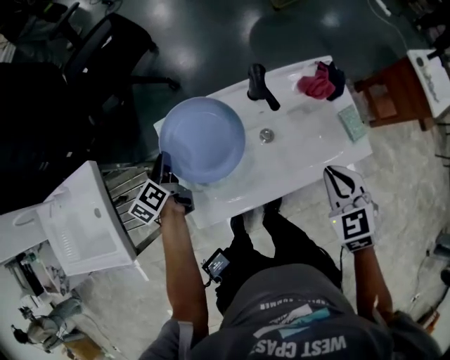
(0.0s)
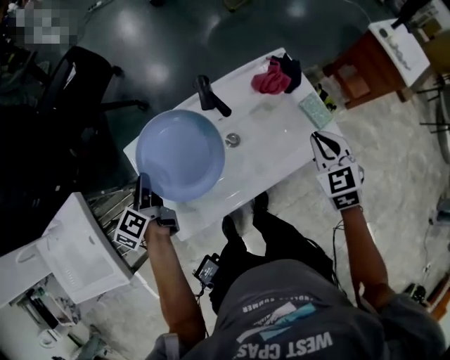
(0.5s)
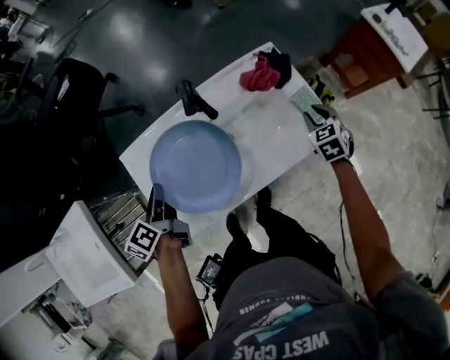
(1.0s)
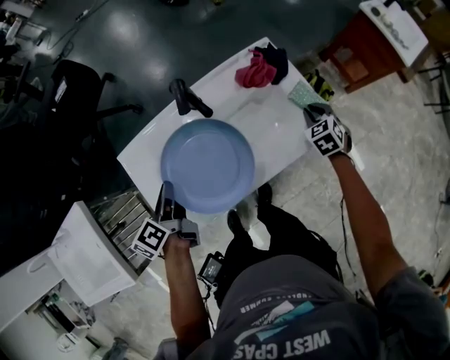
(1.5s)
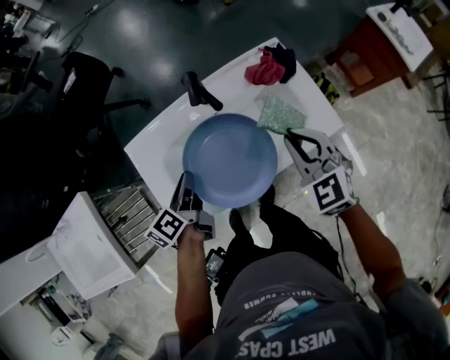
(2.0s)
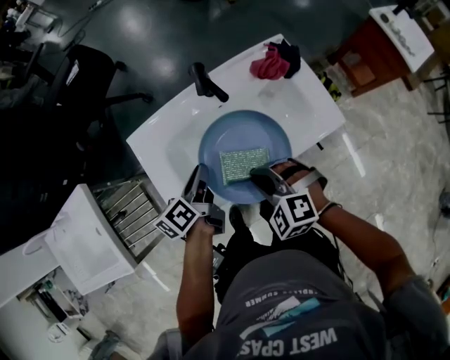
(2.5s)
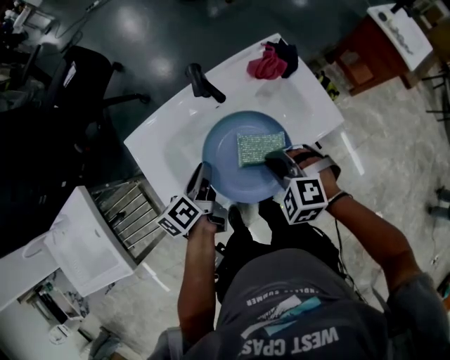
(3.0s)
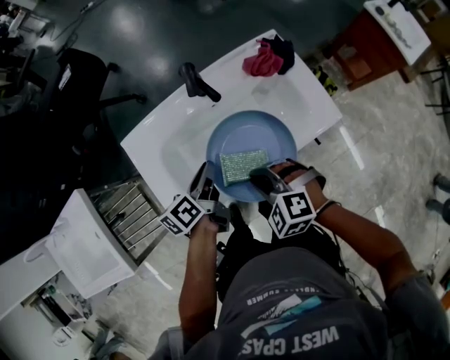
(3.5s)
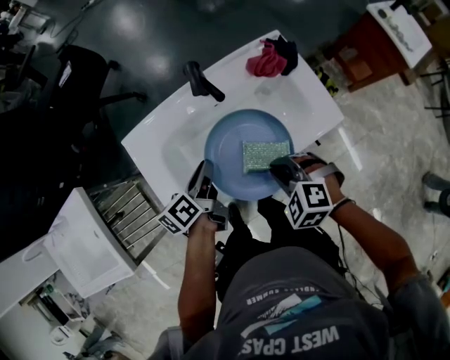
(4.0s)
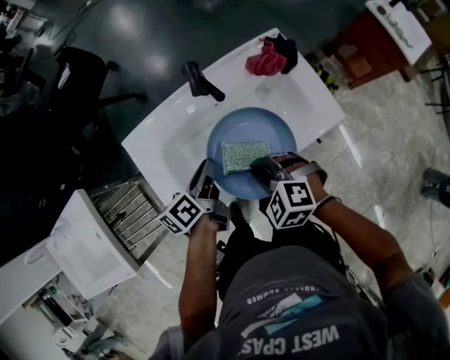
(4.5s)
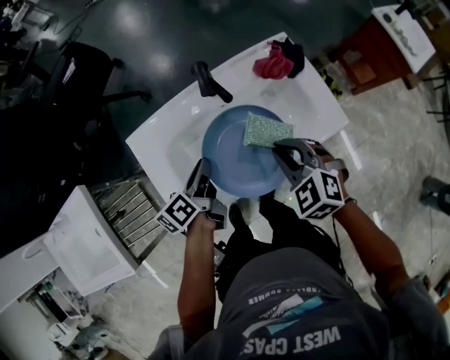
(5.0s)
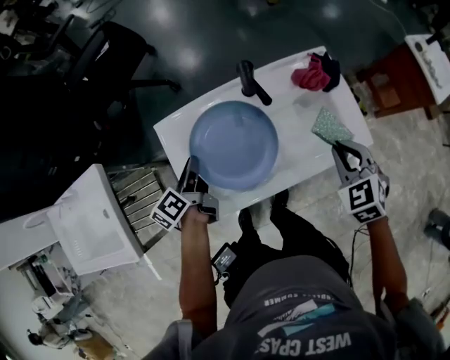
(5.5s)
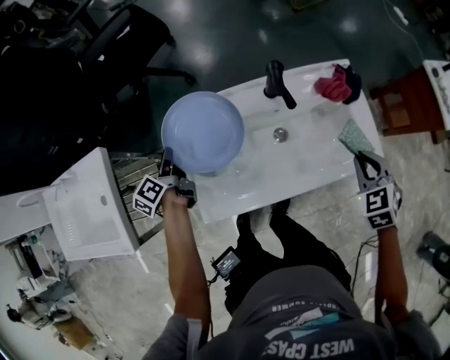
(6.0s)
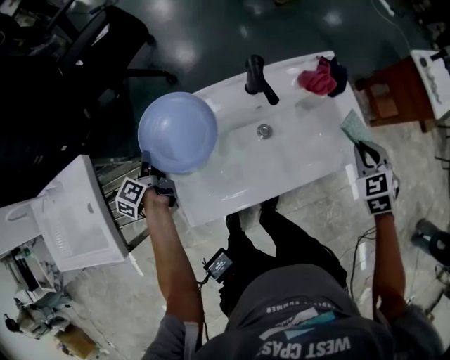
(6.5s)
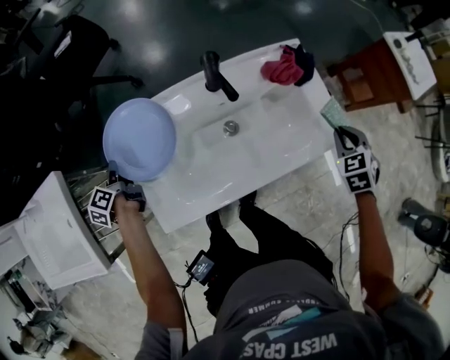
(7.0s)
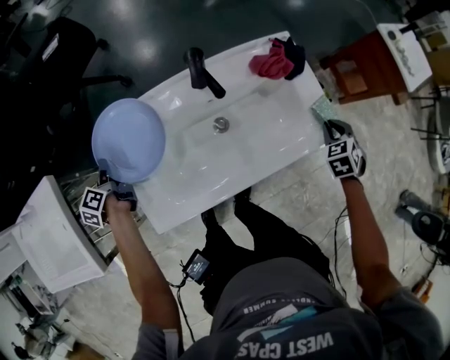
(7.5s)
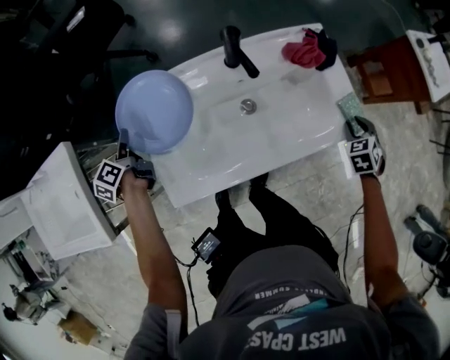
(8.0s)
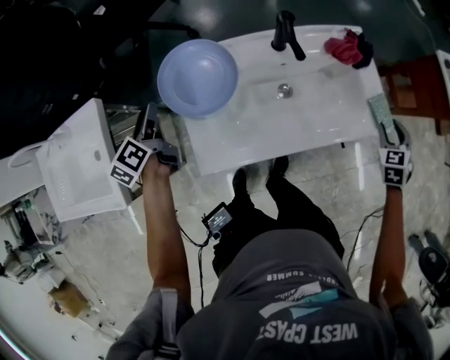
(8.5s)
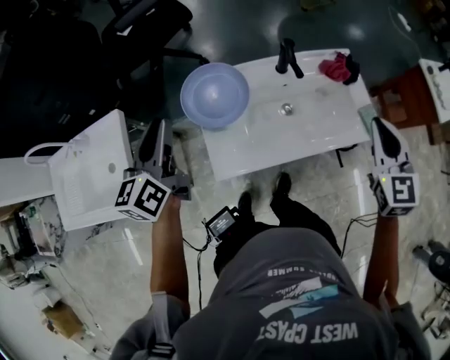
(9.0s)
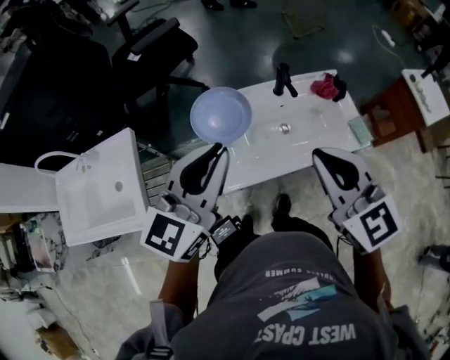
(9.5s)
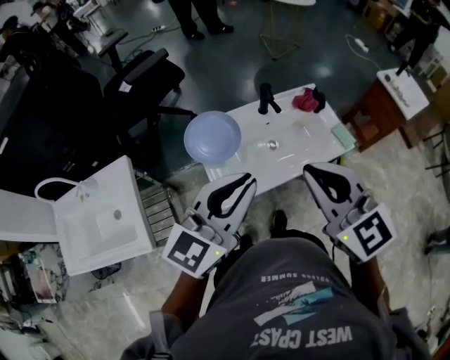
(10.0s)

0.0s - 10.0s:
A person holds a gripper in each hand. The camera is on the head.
0.0s - 2.0s: The right gripper moves roughly 20 cm to the right and comes back. The left gripper is displaced to the right by about 20 cm.
2.0s - 4.0s: The right gripper goes left and right, some 15 cm each way, reversing 3 times, and rotates some 40 degrees. The left gripper moves about 5 cm.
4.0s - 6.0s: The right gripper travels to the right and forward by roughly 15 cm, and swivels roughly 30 degrees. The left gripper is displaced to the left by about 30 cm, and changes its angle by roughly 30 degrees.
6.0s - 8.0s: The right gripper is displaced to the right and downward by roughly 20 cm, and opens its fingers, while the left gripper opens.
8.0s - 10.0s: The left gripper heads upward, to the right and backward, covering roughly 50 cm, angles its fingers upward, by some 30 degrees, and closes up, while the right gripper shifts some 60 cm upward, to the left and backward, points its fingers approximately 50 degrees further upward, and closes.

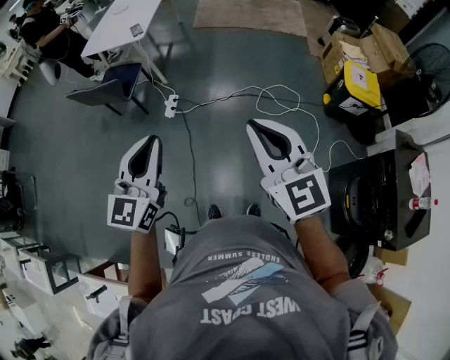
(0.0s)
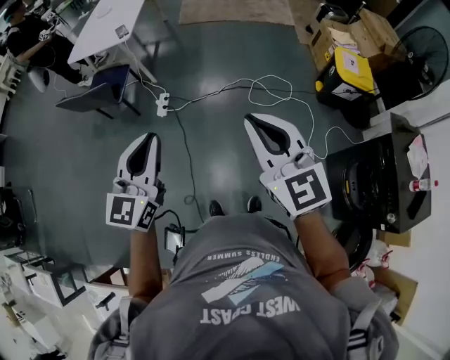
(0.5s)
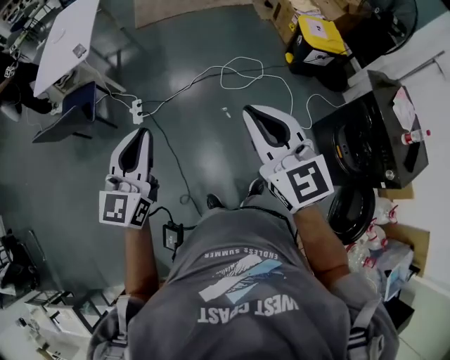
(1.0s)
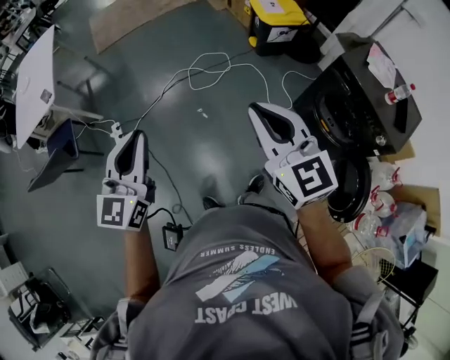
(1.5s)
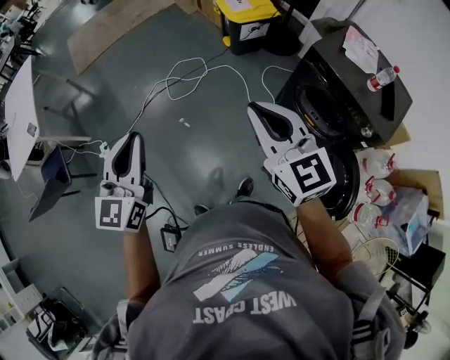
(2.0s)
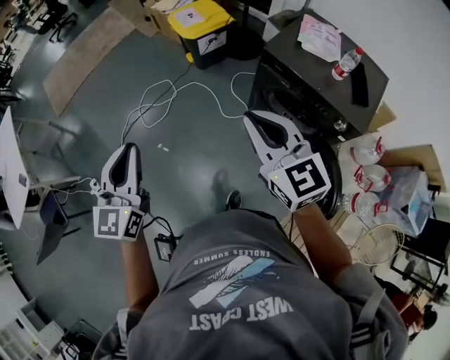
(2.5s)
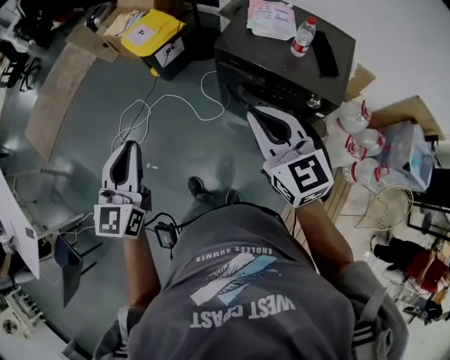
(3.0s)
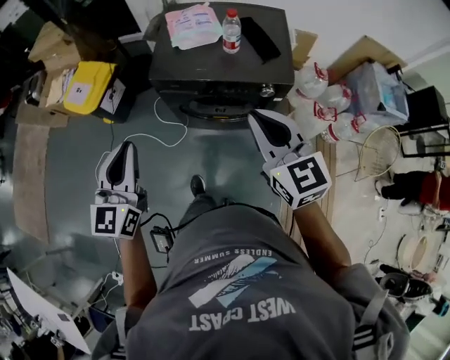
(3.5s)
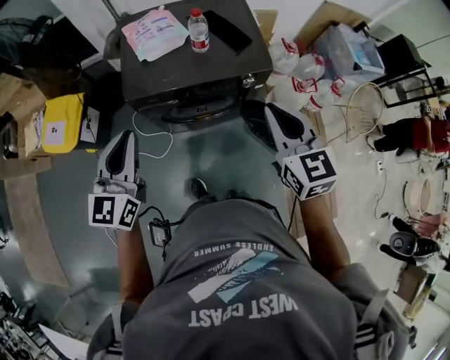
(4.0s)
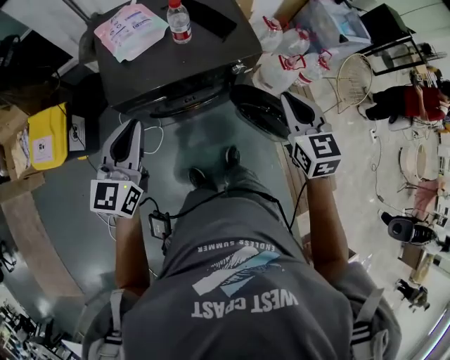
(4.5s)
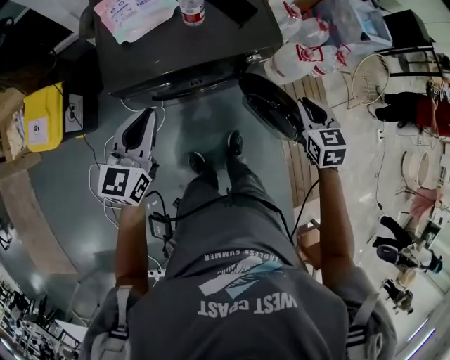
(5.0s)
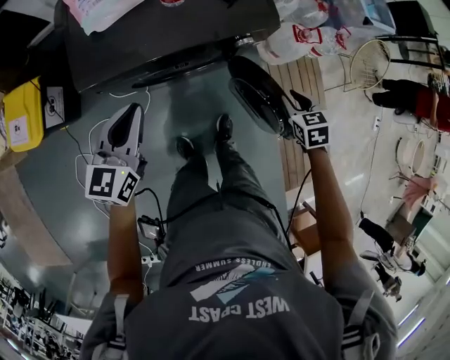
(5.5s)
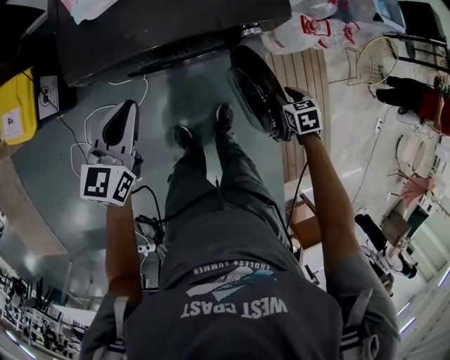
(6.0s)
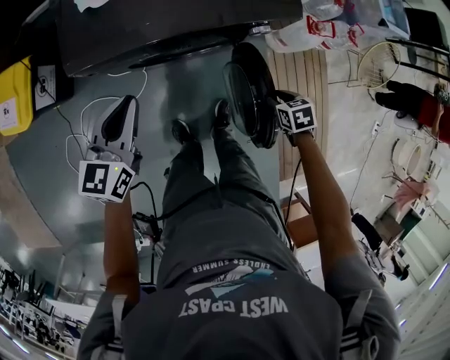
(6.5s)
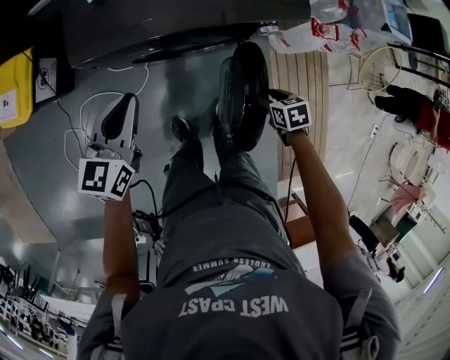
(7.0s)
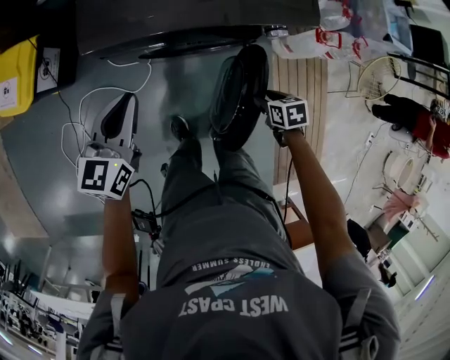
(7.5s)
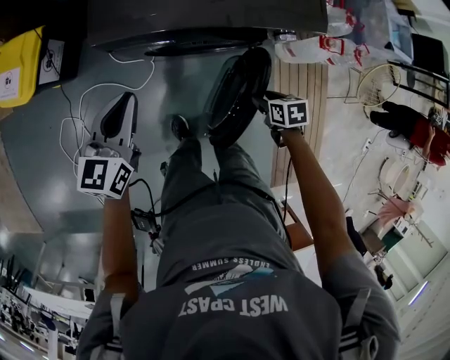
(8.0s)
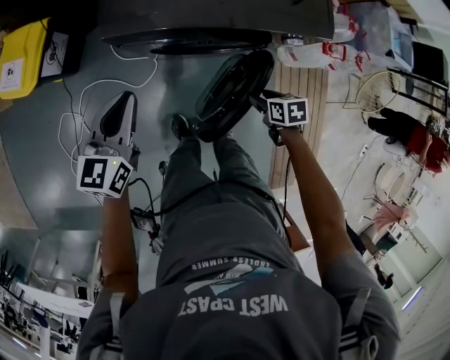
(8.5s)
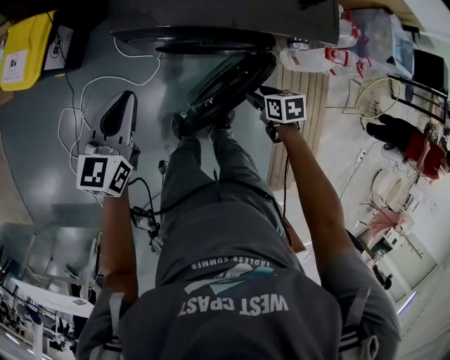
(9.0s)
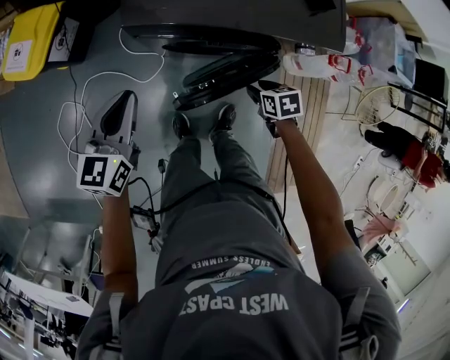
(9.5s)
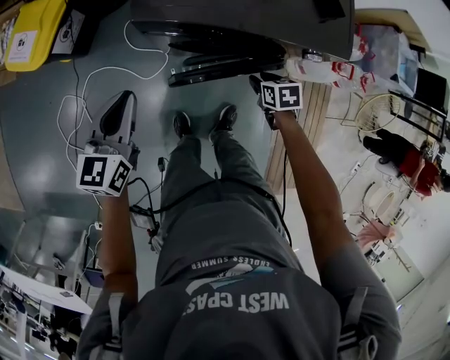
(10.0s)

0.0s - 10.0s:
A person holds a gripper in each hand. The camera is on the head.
0.0s - 2.0s: The left gripper ends up approximately 30 cm from where it was, and swivels roughly 30 degrees; the right gripper changes place by approximately 35 cm, and changes its angle by some 40 degrees.
2.0s - 4.0s: The two grippers travel together, about 50 cm. The left gripper swivels about 60 degrees. The right gripper changes its angle by some 70 degrees.
4.0s - 6.0s: The left gripper is displaced downward and forward by approximately 25 cm, and turns by roughly 20 degrees; the right gripper shifts about 40 cm downward, points its fingers approximately 50 degrees further downward, and opens its fingers.
6.0s - 8.0s: The right gripper is displaced to the left by about 10 cm, while the left gripper shifts roughly 10 cm to the left.
8.0s - 10.0s: The right gripper moves forward and to the left, roughly 15 cm. Meanwhile the left gripper shifts some 10 cm to the left.

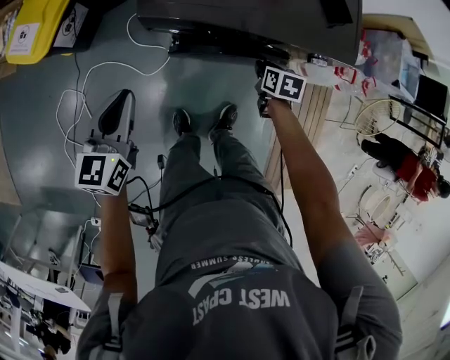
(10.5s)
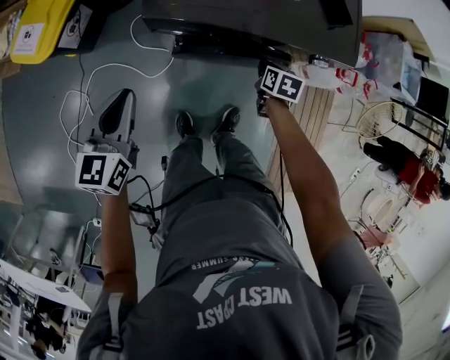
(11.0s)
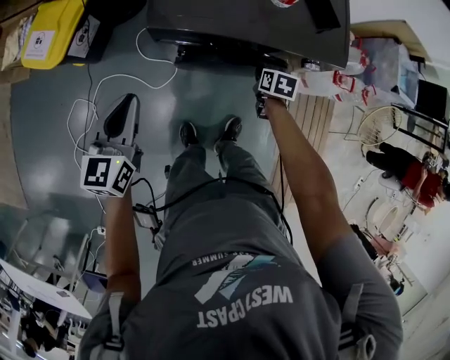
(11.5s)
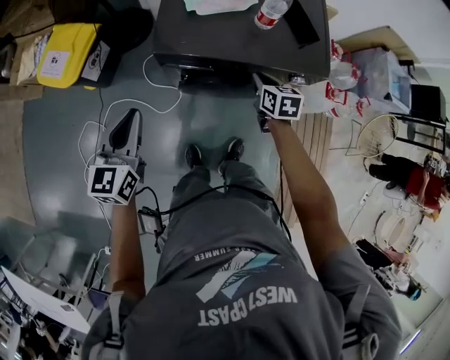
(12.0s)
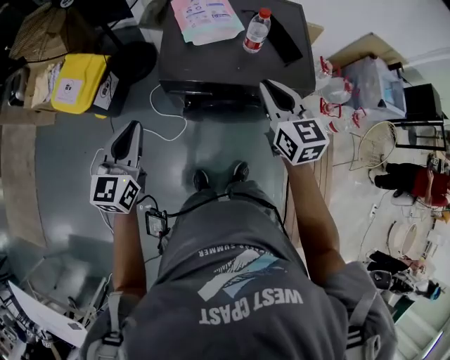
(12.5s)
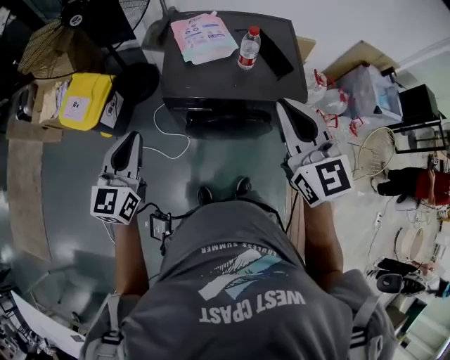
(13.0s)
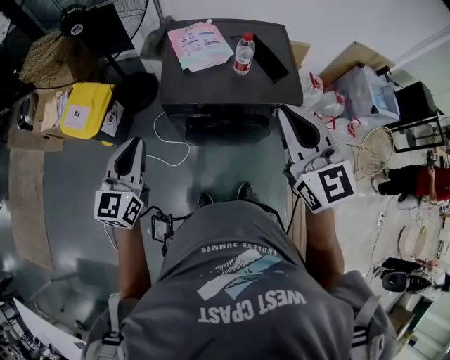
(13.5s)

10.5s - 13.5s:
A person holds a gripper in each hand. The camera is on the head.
10.5s - 12.0s: Both grippers move upward, approximately 10 cm. The right gripper swivels roughly 20 degrees.
12.0s - 13.5s: The left gripper travels upward by some 15 cm, while the right gripper is displaced upward by some 40 cm, and points its fingers roughly 40 degrees further upward.

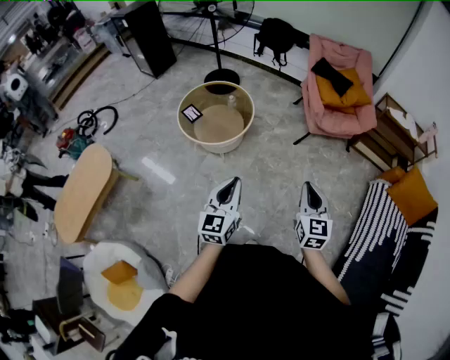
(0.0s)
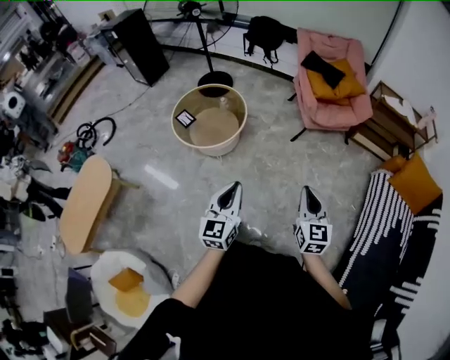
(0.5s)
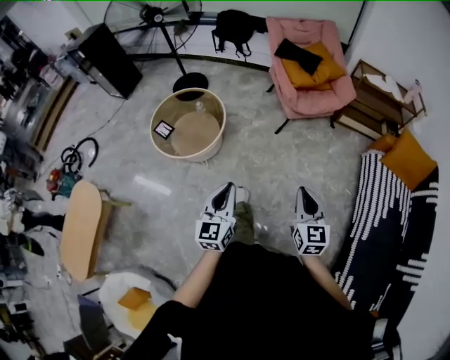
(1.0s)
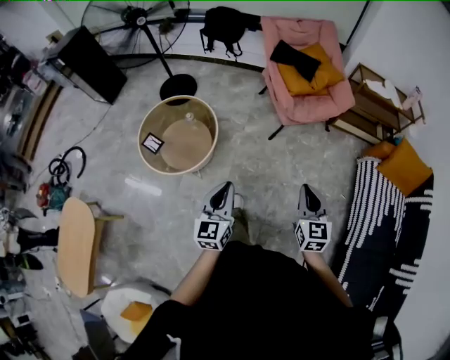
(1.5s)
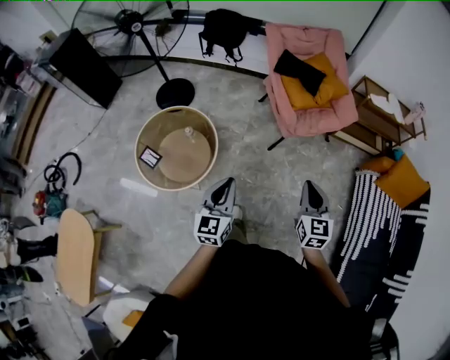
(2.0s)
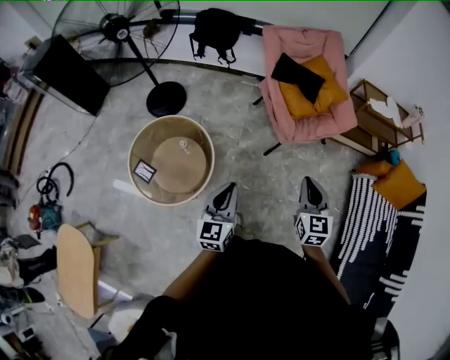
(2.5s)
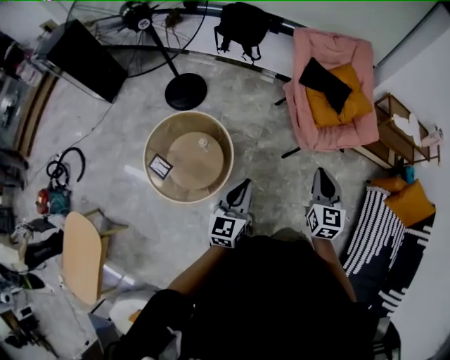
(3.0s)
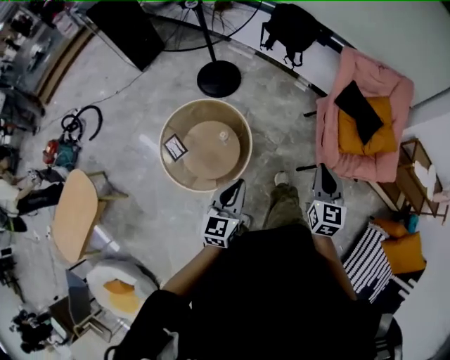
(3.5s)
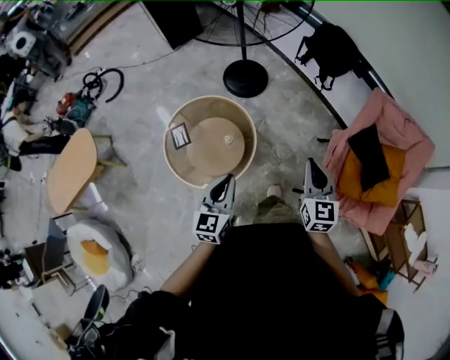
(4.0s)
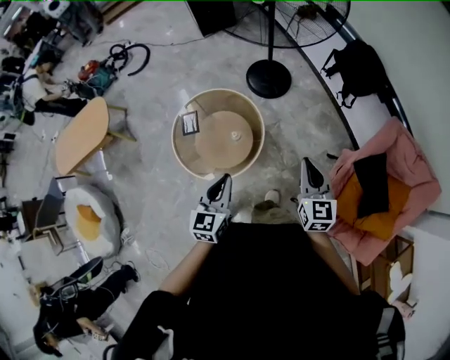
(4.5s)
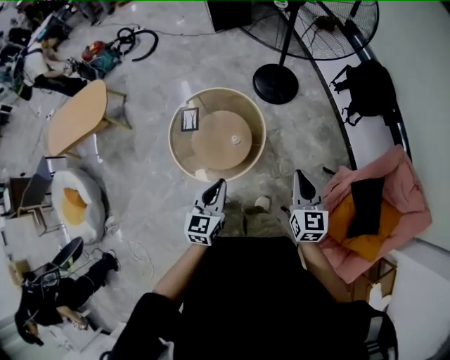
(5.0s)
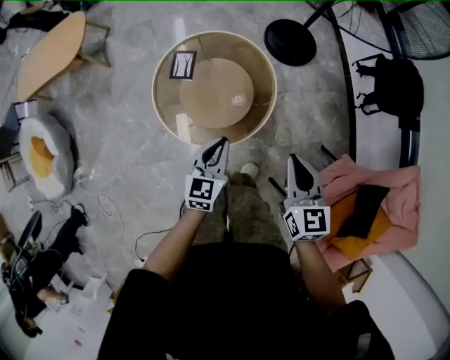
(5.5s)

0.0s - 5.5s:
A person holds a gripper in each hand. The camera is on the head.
0.0s - 2.0s: Both grippers travel together forward, approximately 35 cm.
2.0s - 3.5s: The left gripper shifts some 20 cm forward and to the left, while the right gripper moves forward and to the left, approximately 35 cm.
3.5s - 5.5s: The right gripper ends up roughly 30 cm from where it was, and rotates approximately 60 degrees. Meanwhile the left gripper is displaced downward by some 20 cm, and swivels some 40 degrees.
